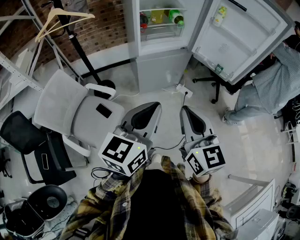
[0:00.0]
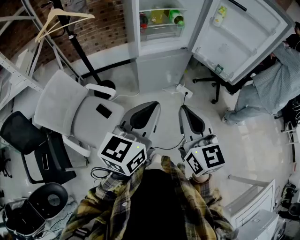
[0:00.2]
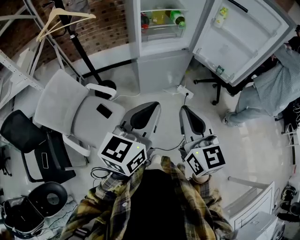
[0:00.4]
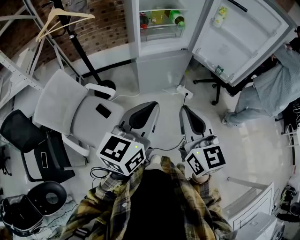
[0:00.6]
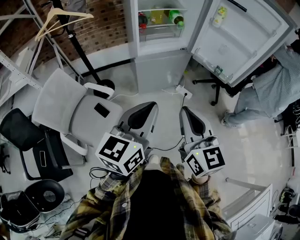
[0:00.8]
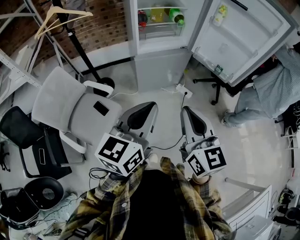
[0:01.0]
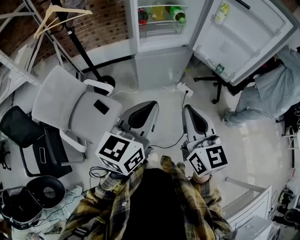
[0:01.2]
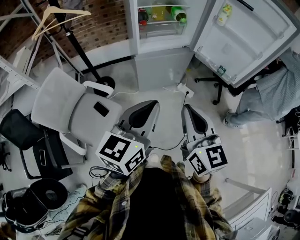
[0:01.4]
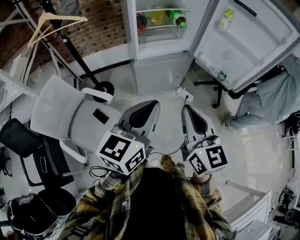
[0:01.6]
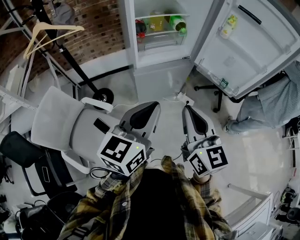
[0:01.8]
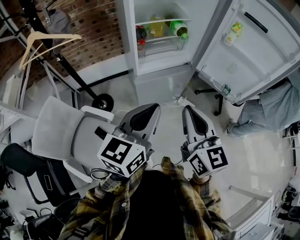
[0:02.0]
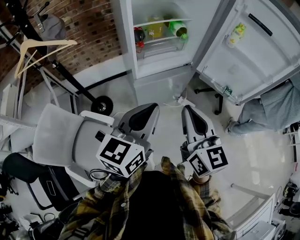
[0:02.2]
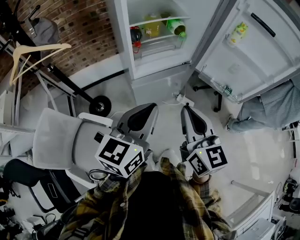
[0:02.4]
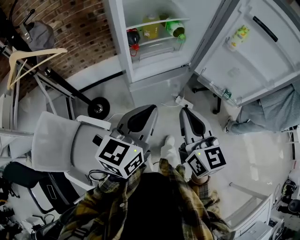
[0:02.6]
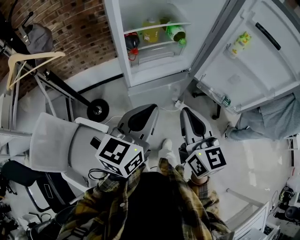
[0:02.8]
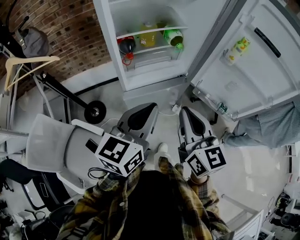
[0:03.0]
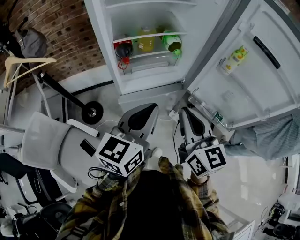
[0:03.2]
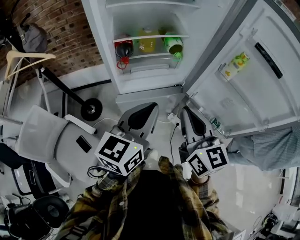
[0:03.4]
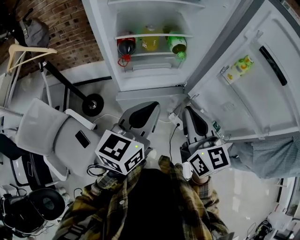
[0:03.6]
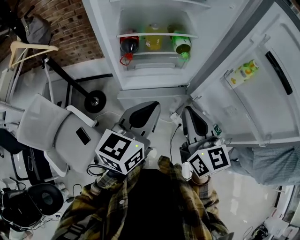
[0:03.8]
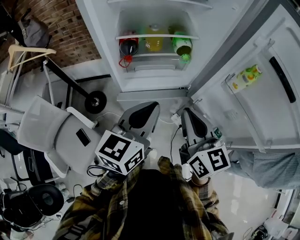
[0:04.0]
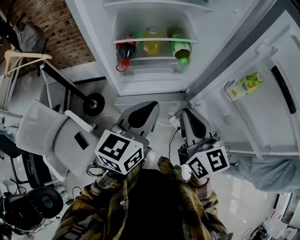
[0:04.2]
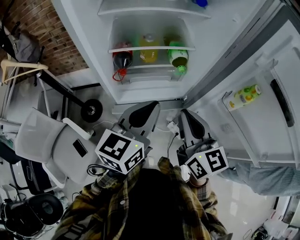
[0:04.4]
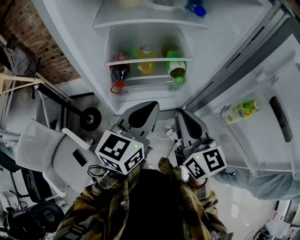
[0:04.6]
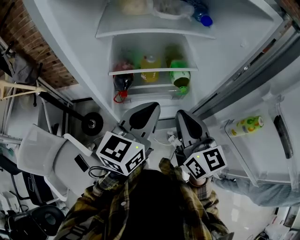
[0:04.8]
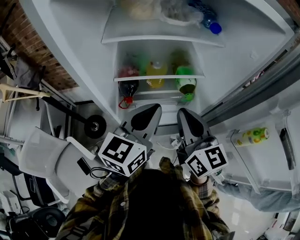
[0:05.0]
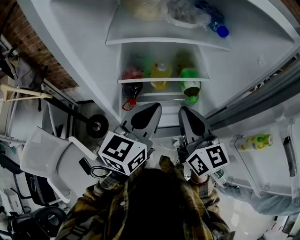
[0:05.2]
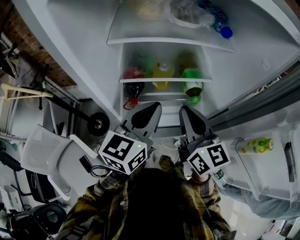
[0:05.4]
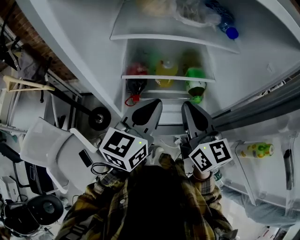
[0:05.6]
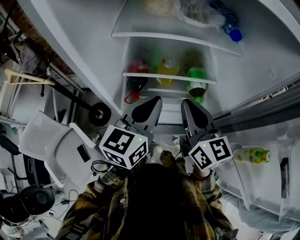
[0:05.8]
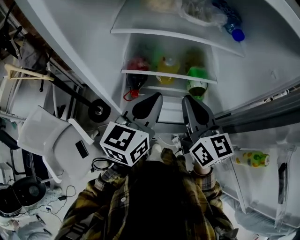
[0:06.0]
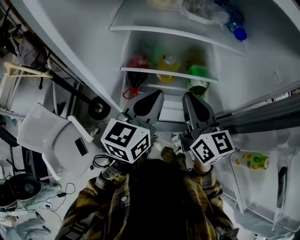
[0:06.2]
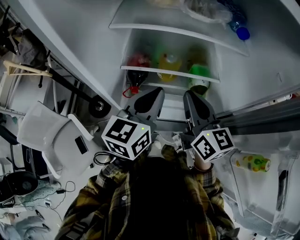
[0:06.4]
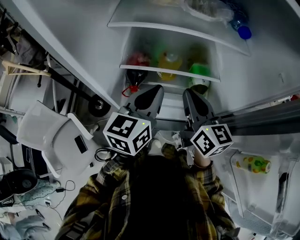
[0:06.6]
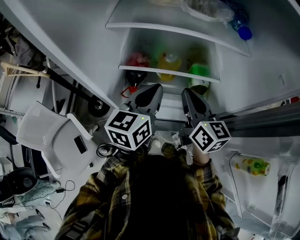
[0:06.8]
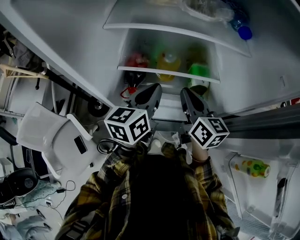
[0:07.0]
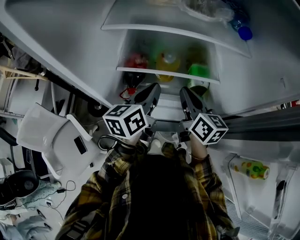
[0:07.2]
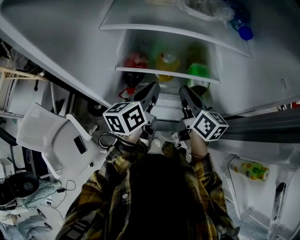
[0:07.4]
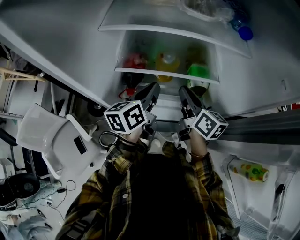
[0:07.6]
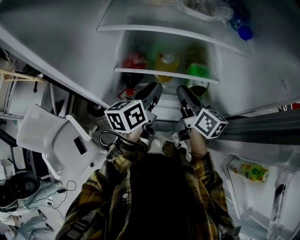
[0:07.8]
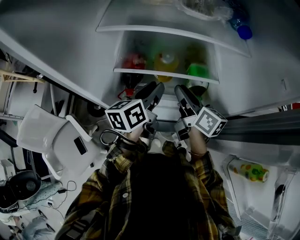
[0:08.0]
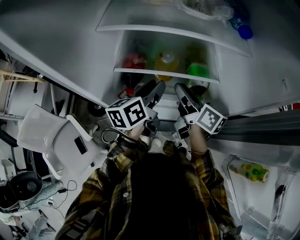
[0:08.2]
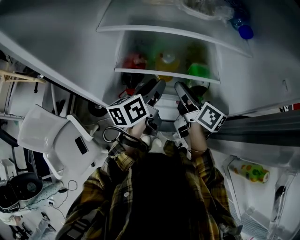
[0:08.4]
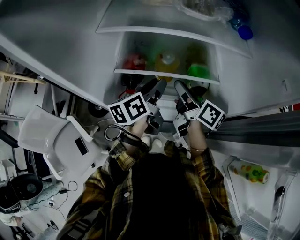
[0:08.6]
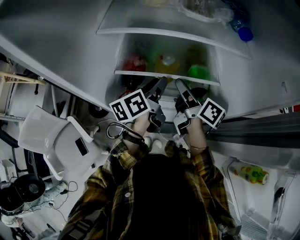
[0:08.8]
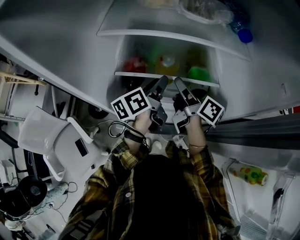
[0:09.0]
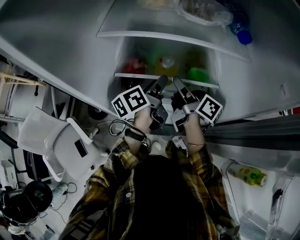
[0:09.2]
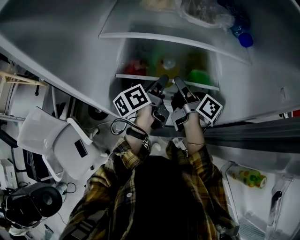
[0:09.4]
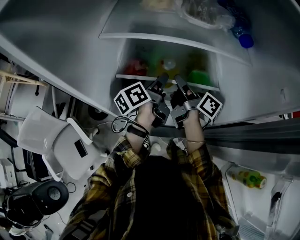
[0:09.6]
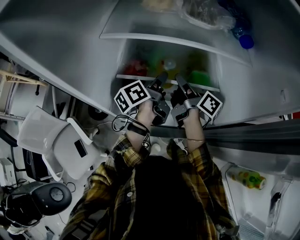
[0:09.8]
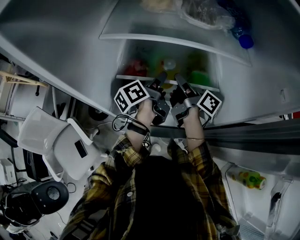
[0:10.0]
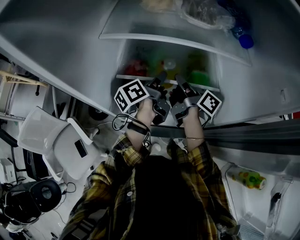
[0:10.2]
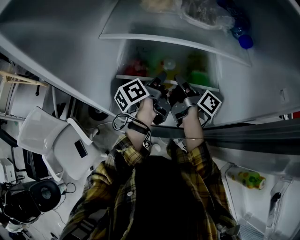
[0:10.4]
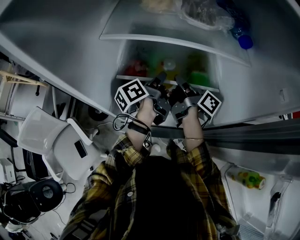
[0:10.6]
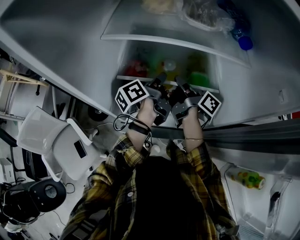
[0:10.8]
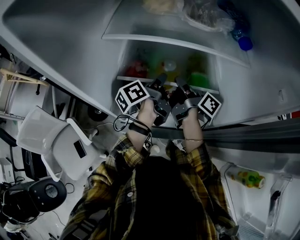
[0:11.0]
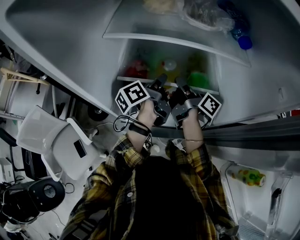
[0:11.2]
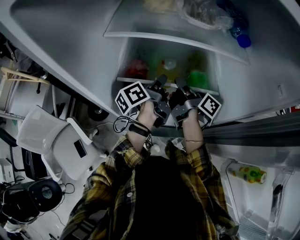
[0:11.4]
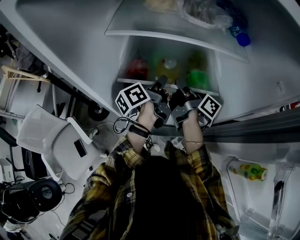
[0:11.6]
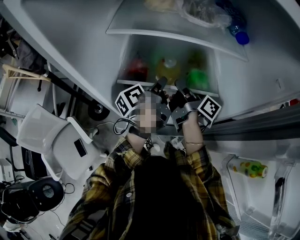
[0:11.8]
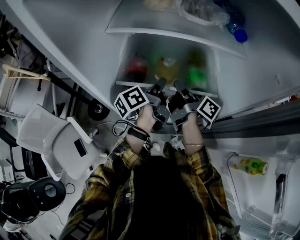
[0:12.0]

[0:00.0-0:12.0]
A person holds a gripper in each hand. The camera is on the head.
0:00.0 to 0:01.6: The grippers both shift forward by approximately 10 cm.
0:01.6 to 0:03.0: The grippers both shift forward by about 25 cm.
0:03.0 to 0:04.4: The two grippers go about 15 cm forward and to the right.
0:04.4 to 0:06.0: The two grippers go about 20 cm forward.
0:06.0 to 0:07.6: The two grippers go about 15 cm downward and forward. The left gripper turns by roughly 30 degrees. Meanwhile the right gripper rotates about 30 degrees.
0:07.6 to 0:09.0: The right gripper swivels roughly 30 degrees, and opens its fingers. Meanwhile the left gripper opens up.
0:09.0 to 0:10.4: The left gripper closes, while the right gripper closes its fingers.
0:10.4 to 0:12.0: The grippers make only small movements.

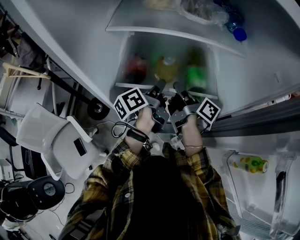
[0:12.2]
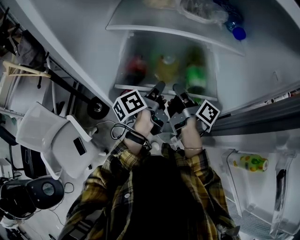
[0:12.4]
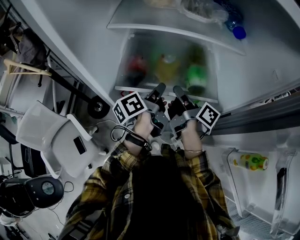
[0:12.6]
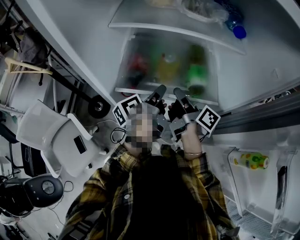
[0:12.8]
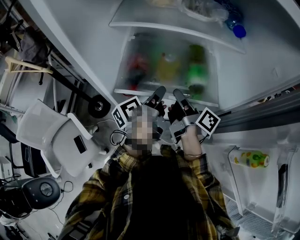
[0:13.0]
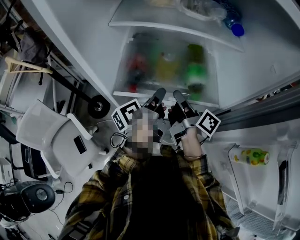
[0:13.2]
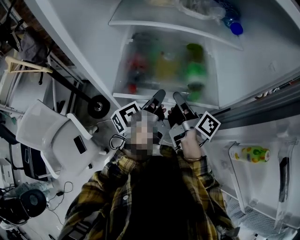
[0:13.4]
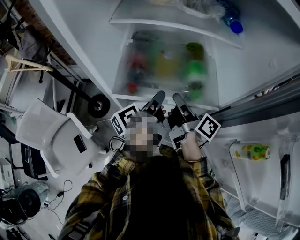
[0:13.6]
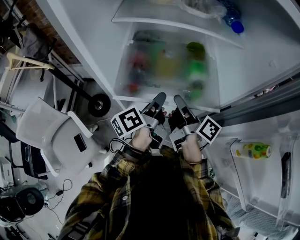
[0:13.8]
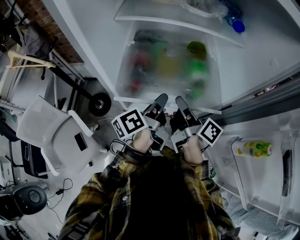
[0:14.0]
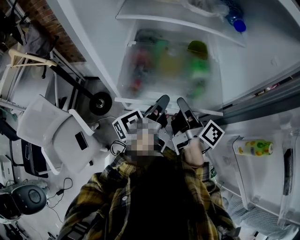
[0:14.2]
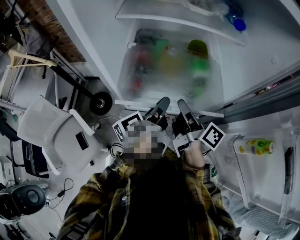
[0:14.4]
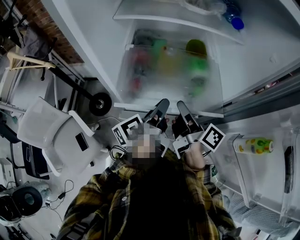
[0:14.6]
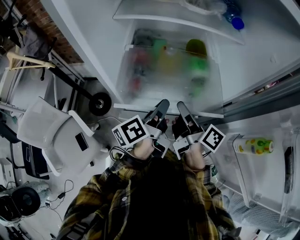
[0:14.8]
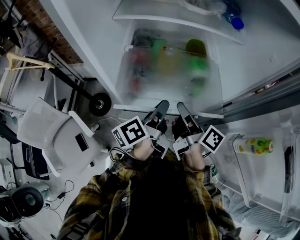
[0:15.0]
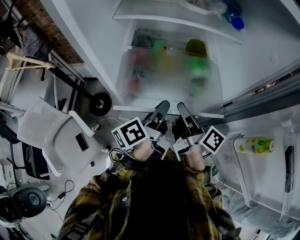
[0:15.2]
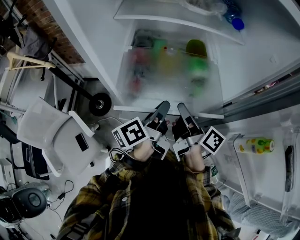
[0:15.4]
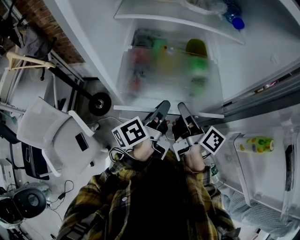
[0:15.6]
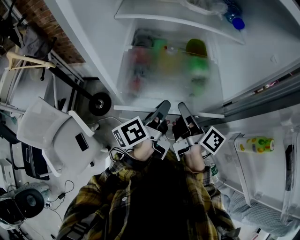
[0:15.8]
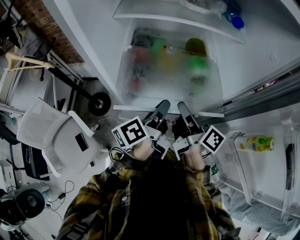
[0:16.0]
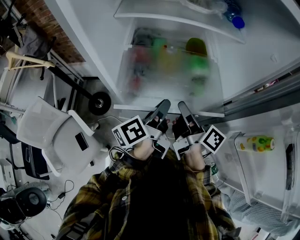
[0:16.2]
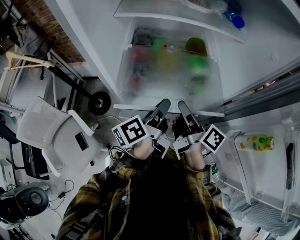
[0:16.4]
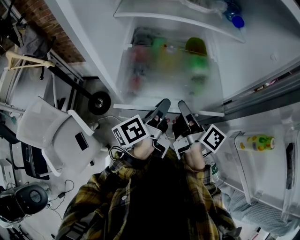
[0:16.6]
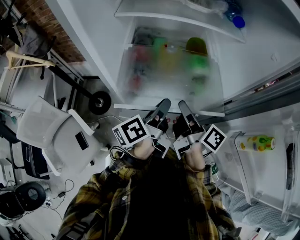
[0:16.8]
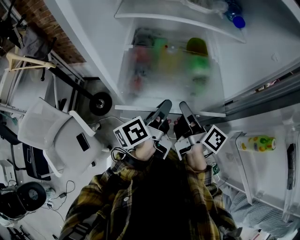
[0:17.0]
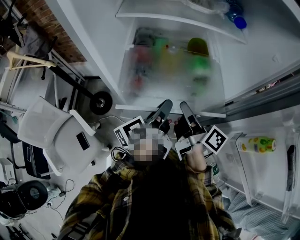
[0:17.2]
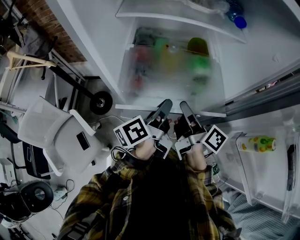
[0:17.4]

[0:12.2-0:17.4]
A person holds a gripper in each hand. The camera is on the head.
0:12.2 to 0:14.0: The two grippers go some 5 cm backward.
0:14.0 to 0:15.6: The grippers make only small movements.
0:15.6 to 0:17.4: Both grippers stay put.

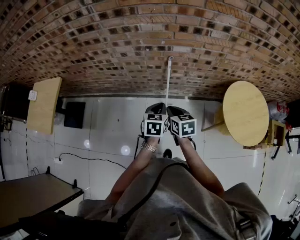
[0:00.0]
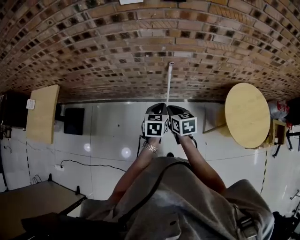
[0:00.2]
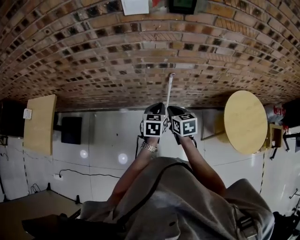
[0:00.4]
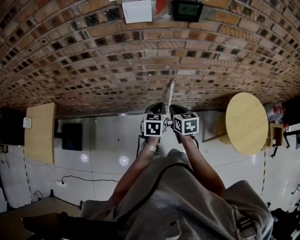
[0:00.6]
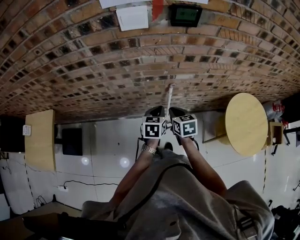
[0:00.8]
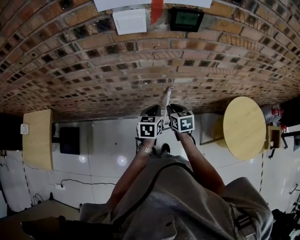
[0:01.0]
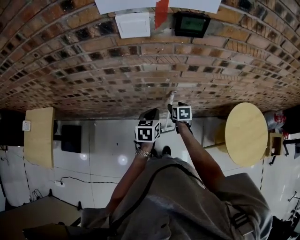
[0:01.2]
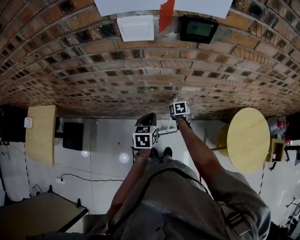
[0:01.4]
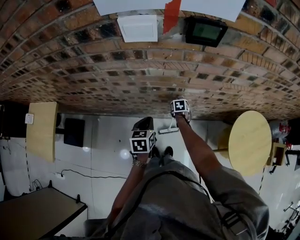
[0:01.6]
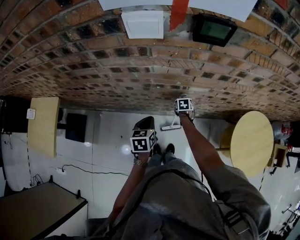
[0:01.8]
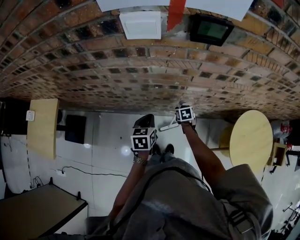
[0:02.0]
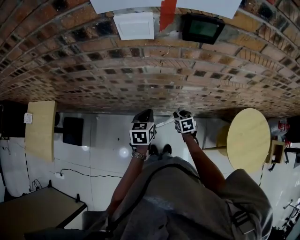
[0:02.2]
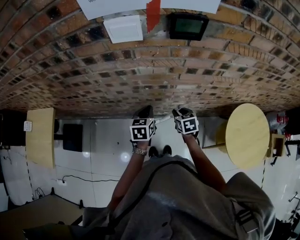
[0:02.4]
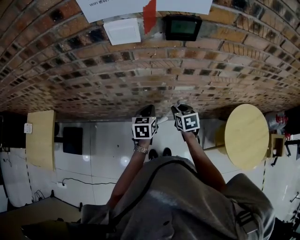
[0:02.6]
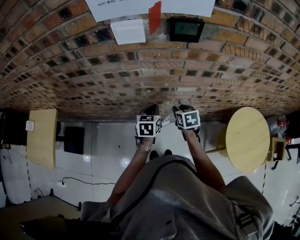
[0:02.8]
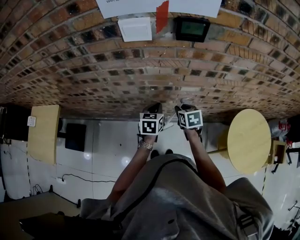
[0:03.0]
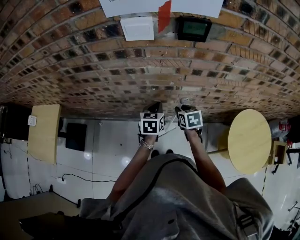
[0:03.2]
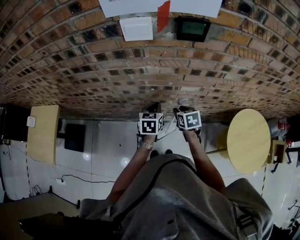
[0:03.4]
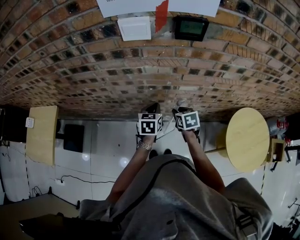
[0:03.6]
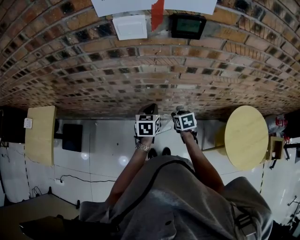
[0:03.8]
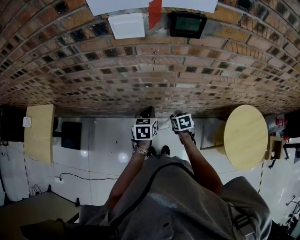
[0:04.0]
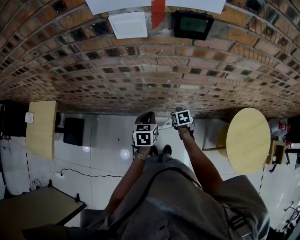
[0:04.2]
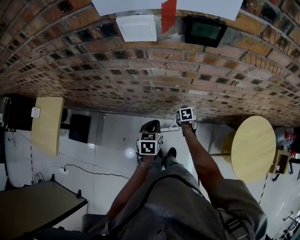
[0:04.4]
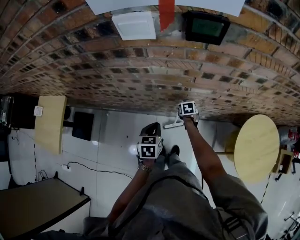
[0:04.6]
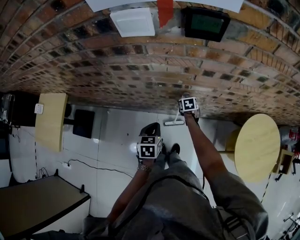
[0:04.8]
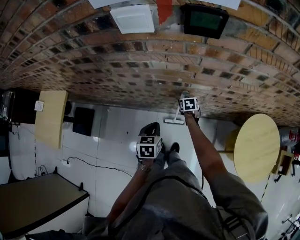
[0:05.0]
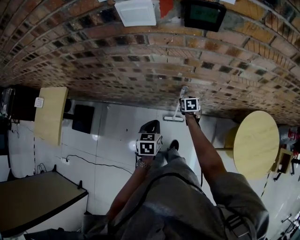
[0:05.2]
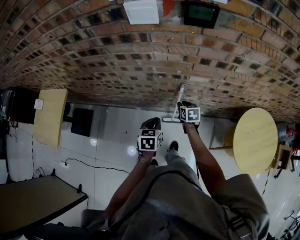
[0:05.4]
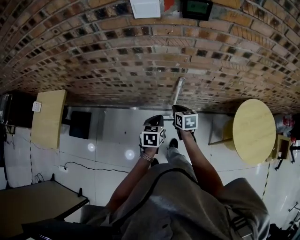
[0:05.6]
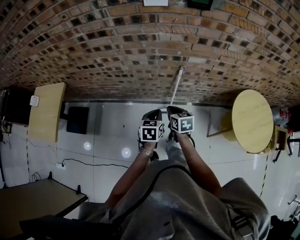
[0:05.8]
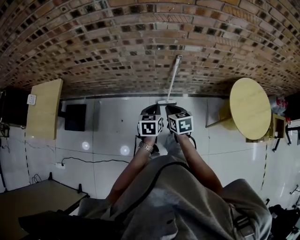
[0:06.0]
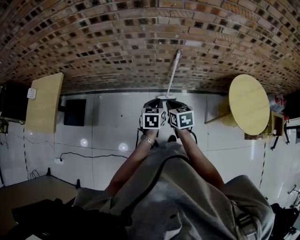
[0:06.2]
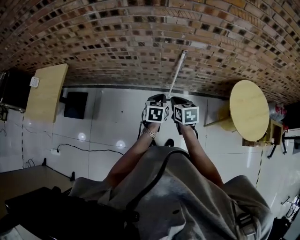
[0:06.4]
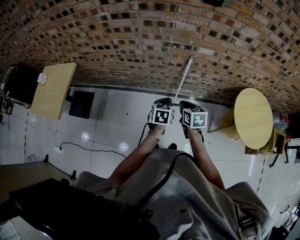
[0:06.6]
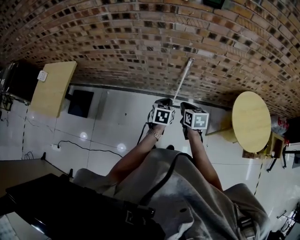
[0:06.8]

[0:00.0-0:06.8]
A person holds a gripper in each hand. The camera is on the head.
0:00.0 to 0:01.4: The left gripper goes roughly 20 cm forward. Meanwhile the right gripper moves forward and downward, about 40 cm, changes its angle by about 30 degrees, and opens up.
0:01.4 to 0:02.8: The right gripper heads upward, covering approximately 20 cm, and closes up. The left gripper ends up some 5 cm from where it was.
0:02.8 to 0:04.0: The right gripper moves downward, approximately 10 cm.
0:04.0 to 0:05.4: The right gripper travels forward and back again, roughly 15 cm each way, and opens, then closes once more; the left gripper shifts some 10 cm backward.
0:05.4 to 0:06.8: The left gripper shifts about 15 cm backward. Meanwhile the right gripper goes about 30 cm backward and upward, and closes up.
